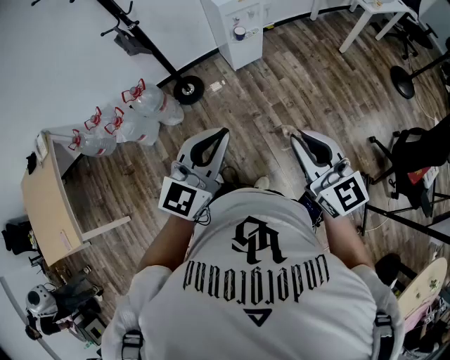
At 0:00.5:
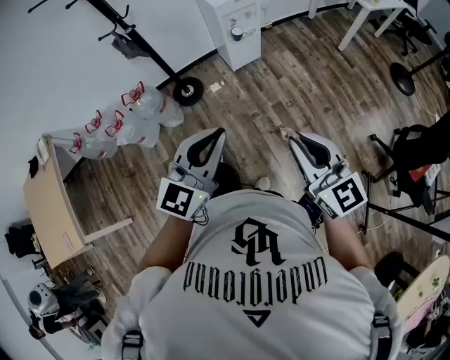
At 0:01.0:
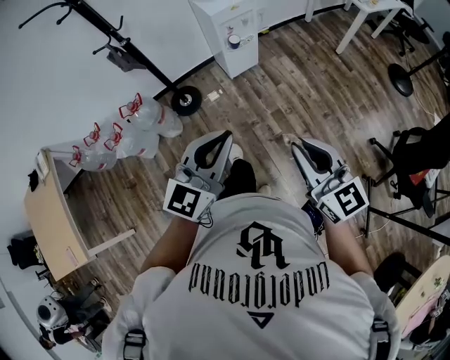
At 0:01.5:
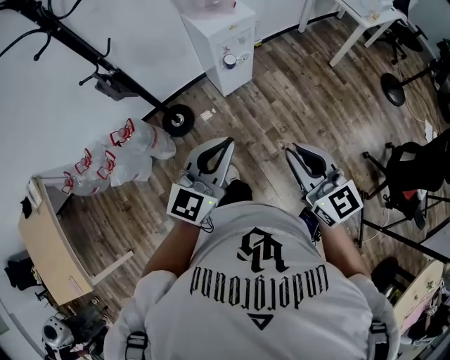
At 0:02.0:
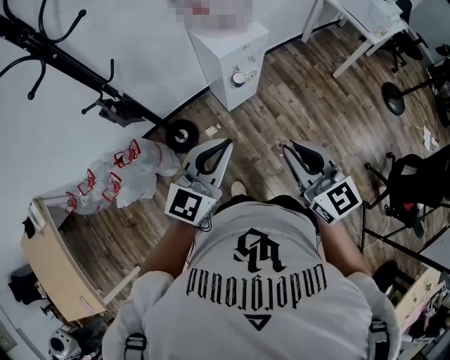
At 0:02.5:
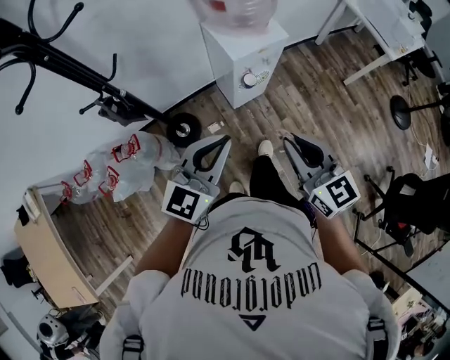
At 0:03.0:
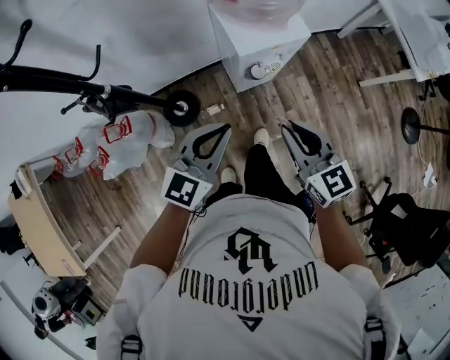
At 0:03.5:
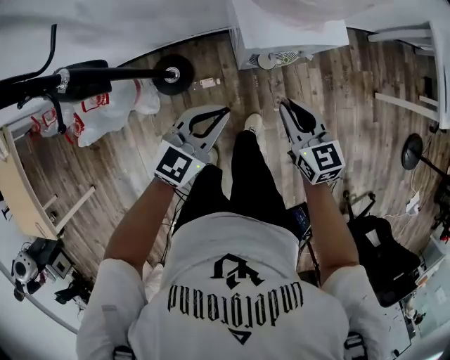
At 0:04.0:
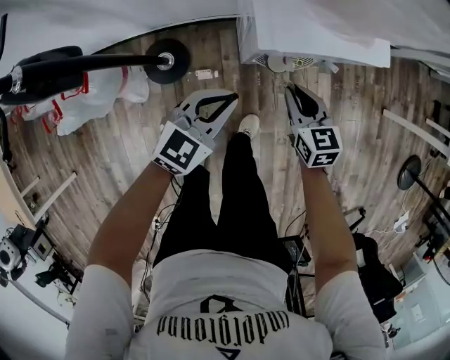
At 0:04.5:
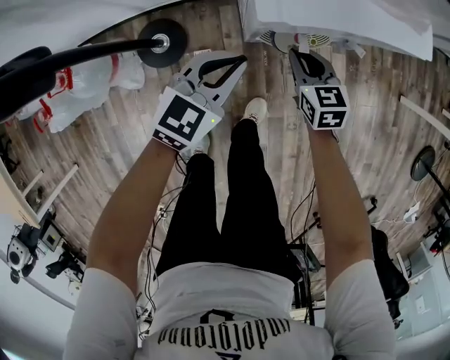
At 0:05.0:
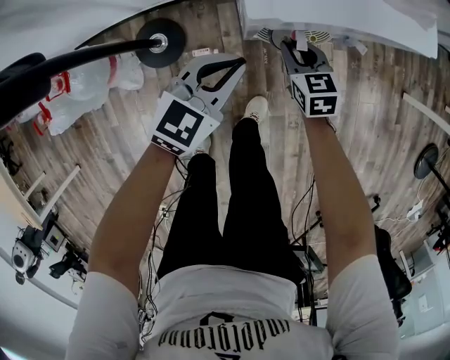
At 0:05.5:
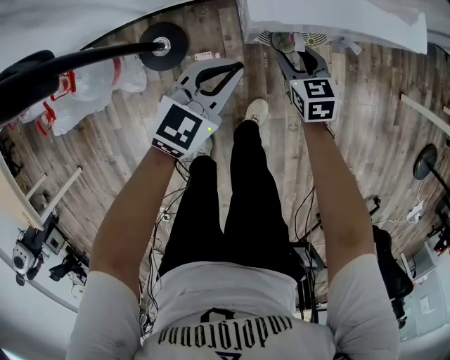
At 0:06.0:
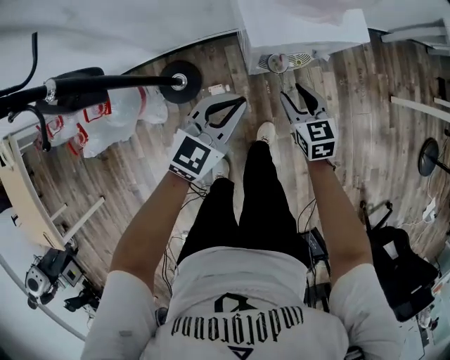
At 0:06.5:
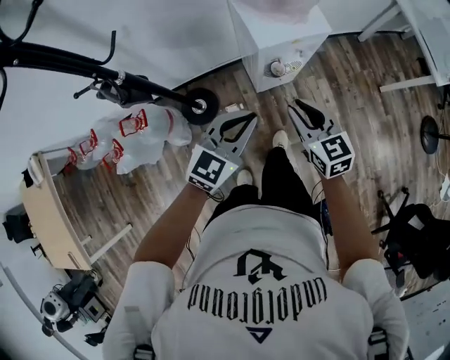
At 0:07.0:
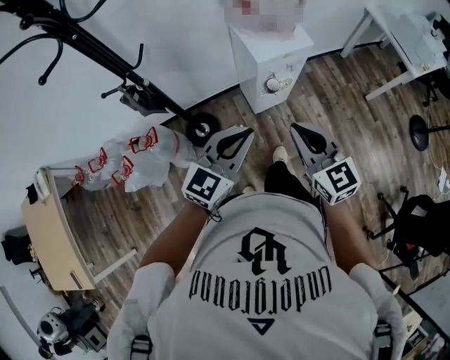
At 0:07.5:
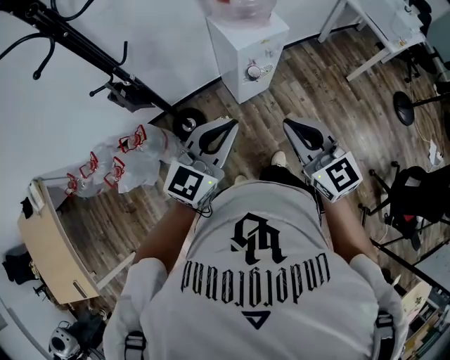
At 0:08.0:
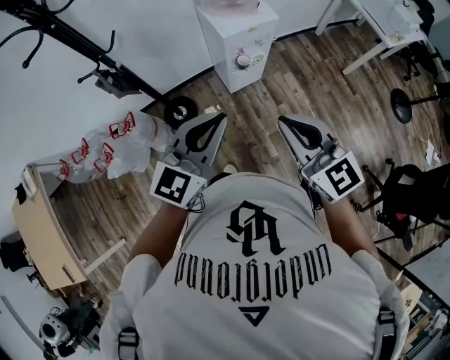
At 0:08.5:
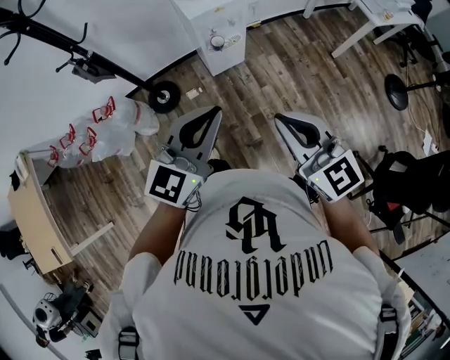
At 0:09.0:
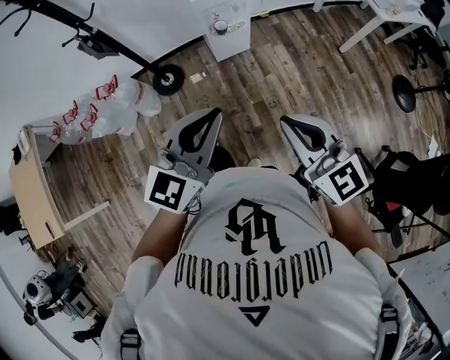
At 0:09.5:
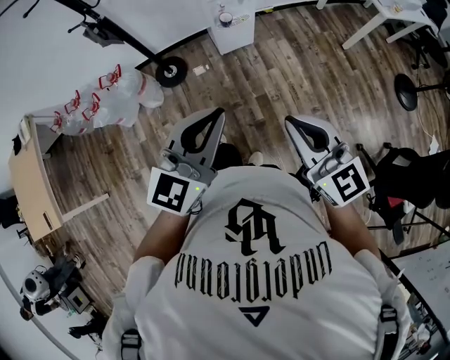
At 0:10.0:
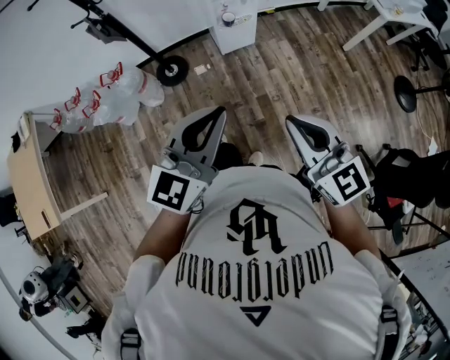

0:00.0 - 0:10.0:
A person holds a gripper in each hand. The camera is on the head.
0:00.0 - 0:02.0: Both grippers travel together forward, some 35 cm.
0:02.0 - 0:04.0: Both grippers travel together downward and forward, about 60 cm. The left gripper swivels about 20 degrees, while the right gripper changes its angle by about 30 degrees.
0:04.0 - 0:06.0: The left gripper goes approximately 5 cm upward. The right gripper goes downward and returns, about 15 cm each way, and opens.
0:06.0 - 0:08.0: The two grippers go about 50 cm upward and backward. The right gripper changes its angle by roughly 30 degrees, and closes its fingers.
0:08.0 - 0:10.0: The two grippers go approximately 25 cm backward and to the right.

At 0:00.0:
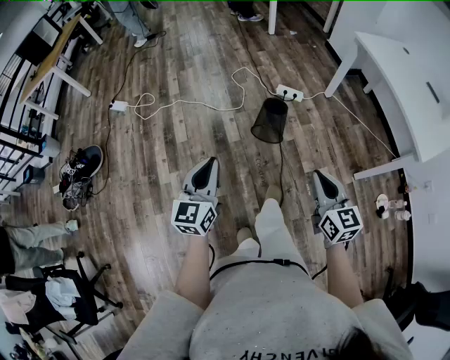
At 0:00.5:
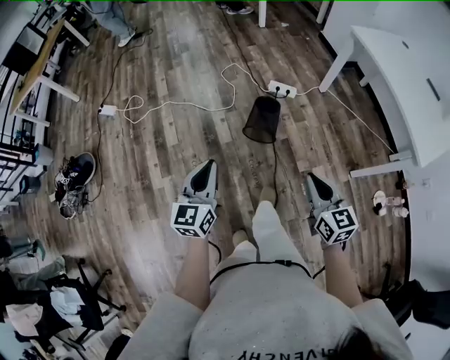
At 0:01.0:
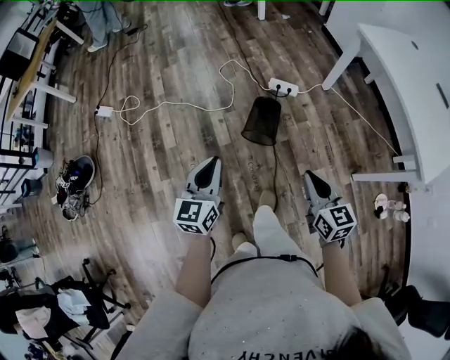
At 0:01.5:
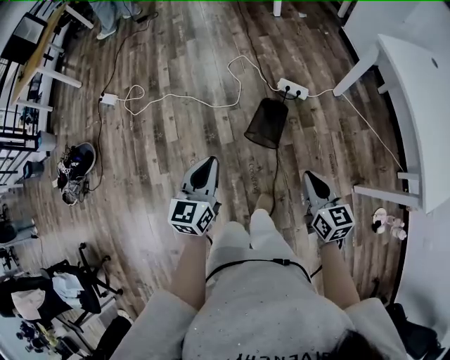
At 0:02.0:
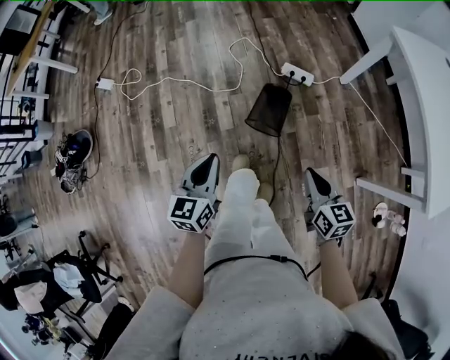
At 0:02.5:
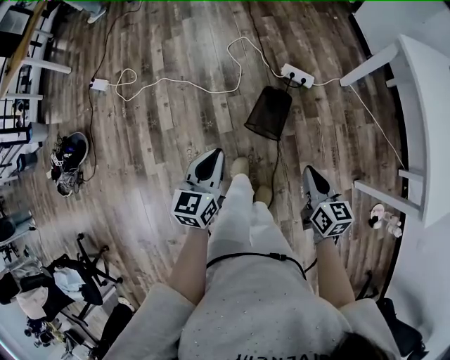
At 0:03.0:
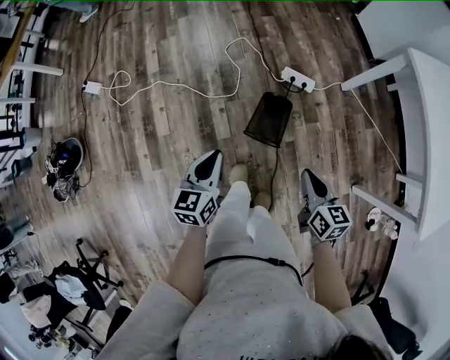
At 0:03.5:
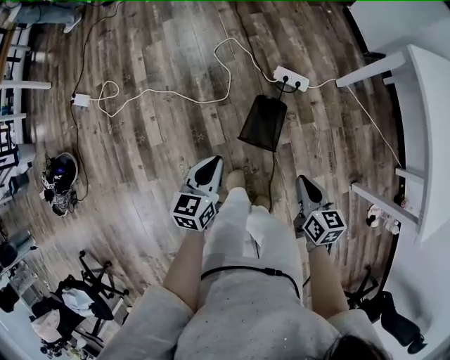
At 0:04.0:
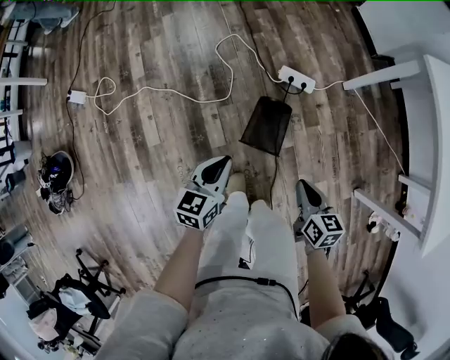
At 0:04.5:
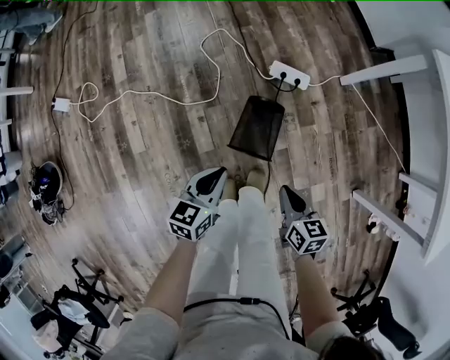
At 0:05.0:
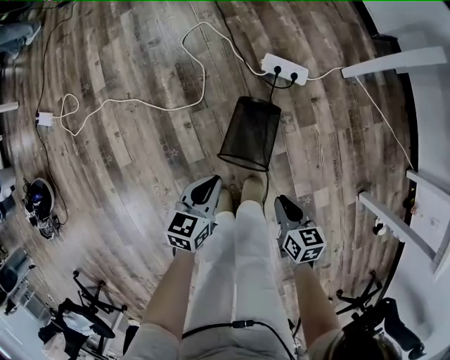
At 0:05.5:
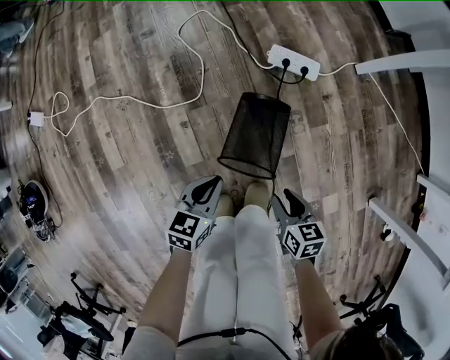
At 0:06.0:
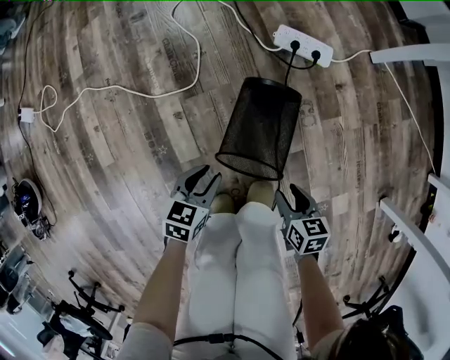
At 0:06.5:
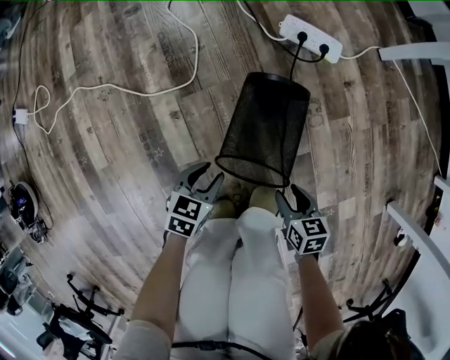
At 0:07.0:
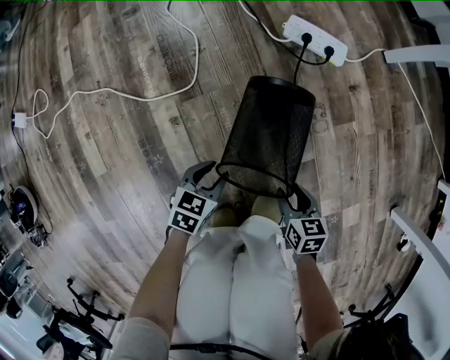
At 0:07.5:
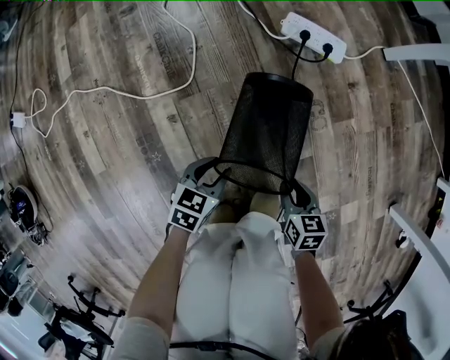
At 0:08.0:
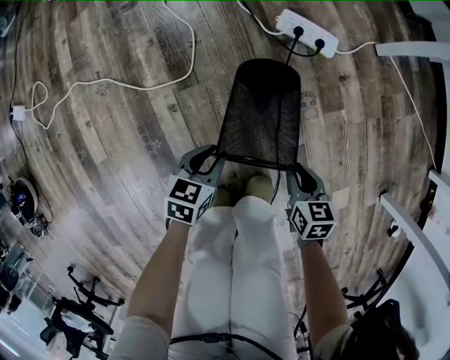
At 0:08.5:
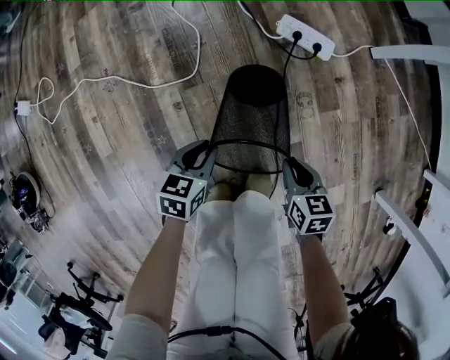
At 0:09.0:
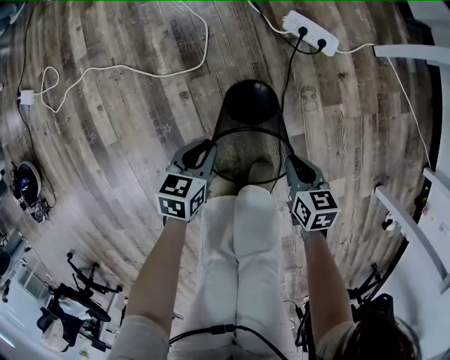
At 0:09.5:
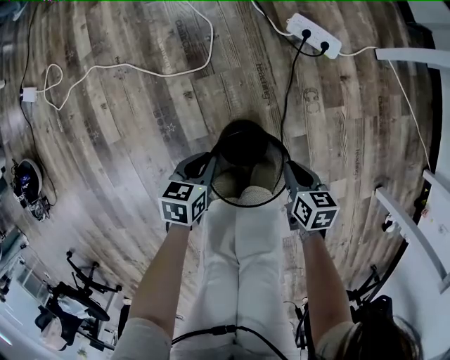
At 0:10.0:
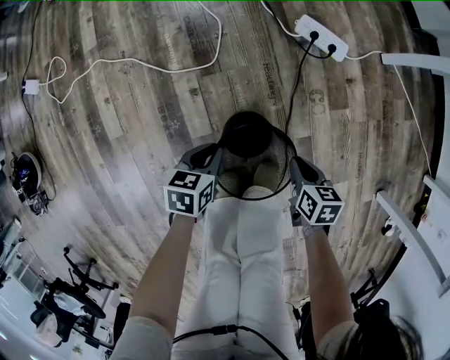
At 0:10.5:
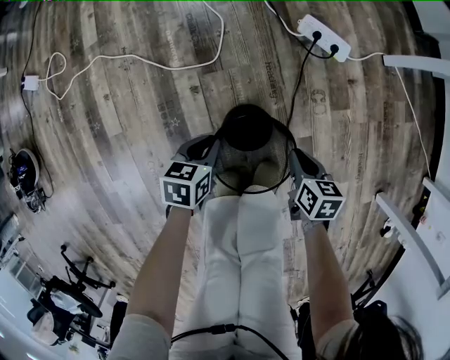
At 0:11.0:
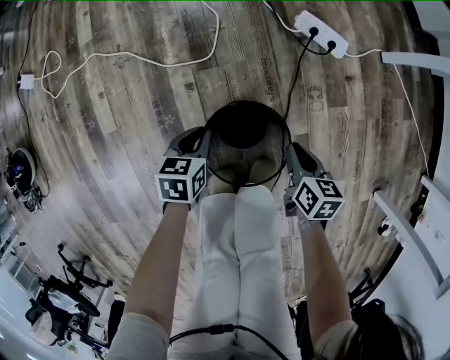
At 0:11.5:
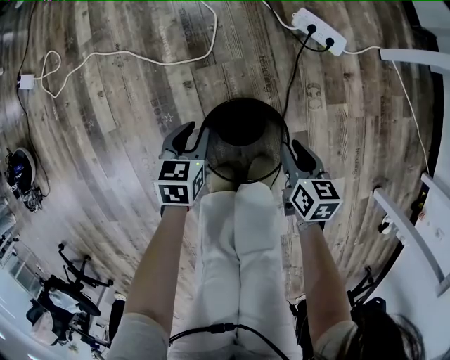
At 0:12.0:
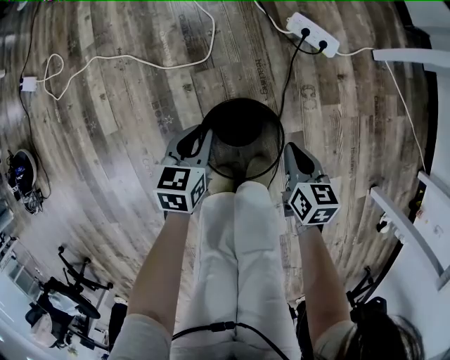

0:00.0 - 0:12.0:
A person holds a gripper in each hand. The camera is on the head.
0:00.0 - 0:02.0: The left gripper travels forward, downward and to the right by roughly 30 cm. The right gripper goes approximately 30 cm forward and downward.
0:02.0 - 0:04.0: The grippers both shift forward and downward by some 25 cm.
0:04.0 - 0:06.0: Both grippers travel together downward, approximately 40 cm. The right gripper opens. Meanwhile the left gripper changes its angle by some 20 degrees, and opens up.
0:06.0 - 0:08.0: The right gripper goes roughly 5 cm forward, travels downward and back again, roughly 10 cm each way, and closes up. Meanwhile the left gripper travels downward and back again, roughly 10 cm each way.
0:08.0 - 0:10.0: The right gripper moves upward, about 5 cm, while the left gripper moves upward and to the left, some 10 cm.
0:10.0 - 0:12.0: The right gripper travels upward by about 5 cm. The left gripper moves about 5 cm.

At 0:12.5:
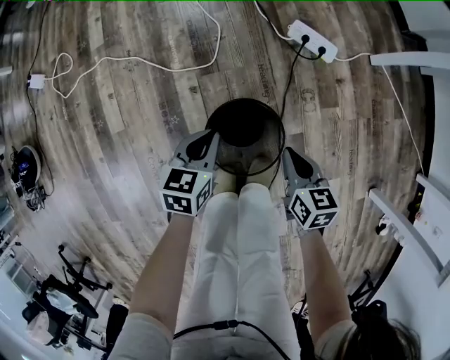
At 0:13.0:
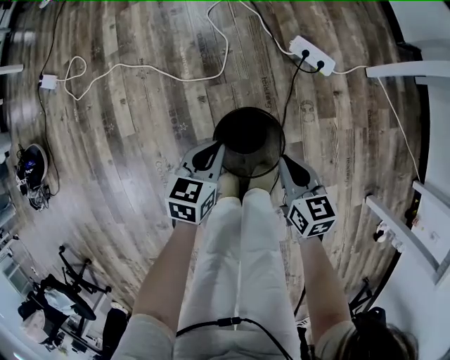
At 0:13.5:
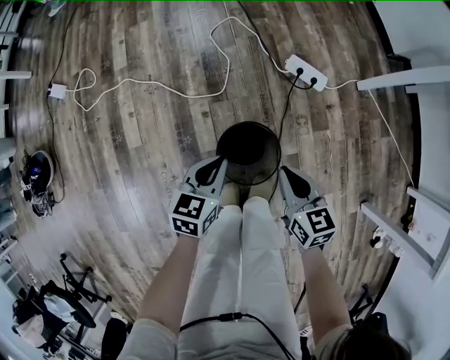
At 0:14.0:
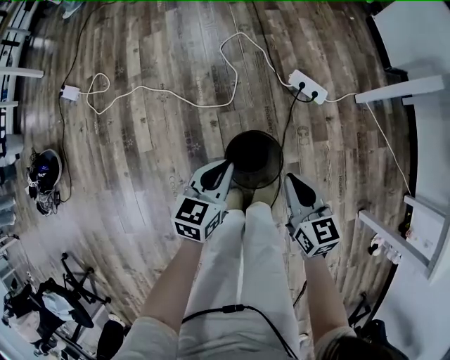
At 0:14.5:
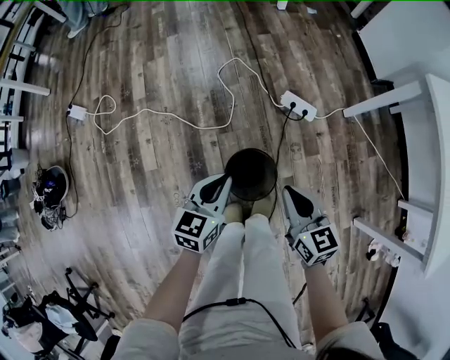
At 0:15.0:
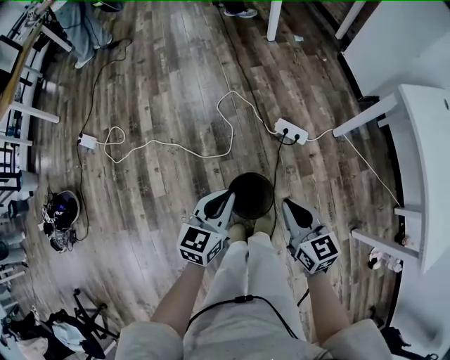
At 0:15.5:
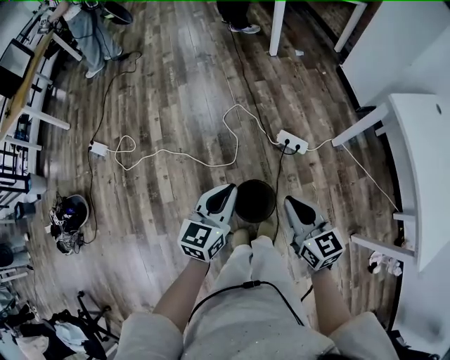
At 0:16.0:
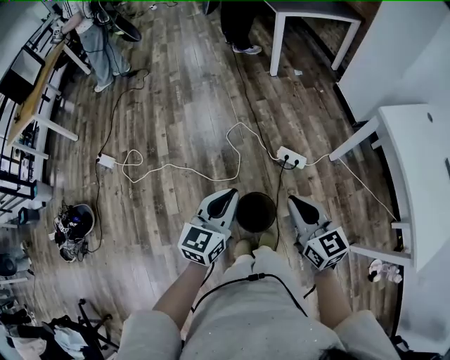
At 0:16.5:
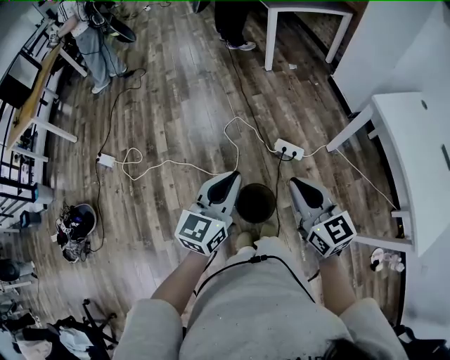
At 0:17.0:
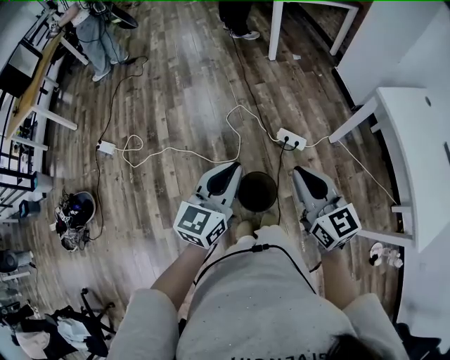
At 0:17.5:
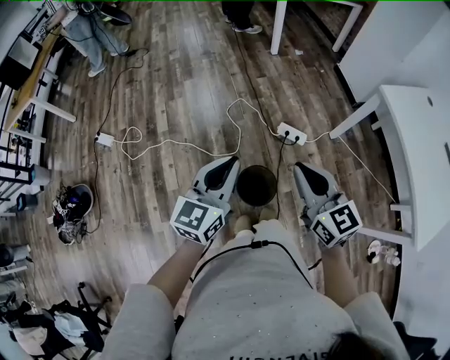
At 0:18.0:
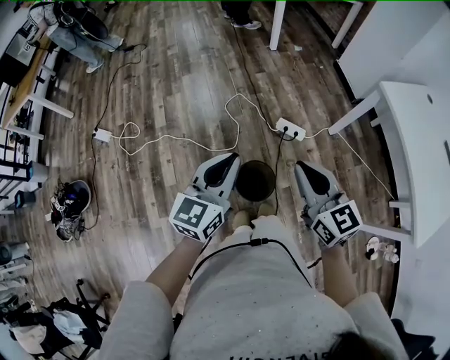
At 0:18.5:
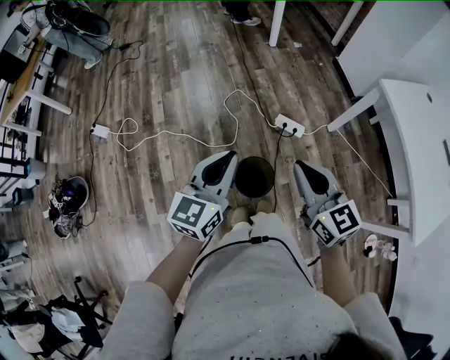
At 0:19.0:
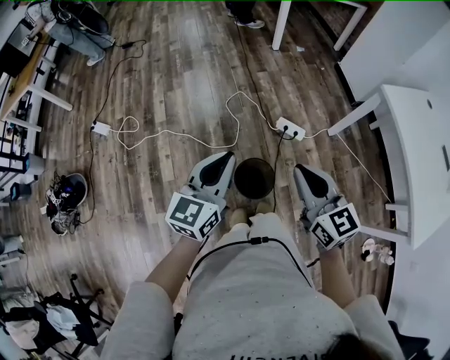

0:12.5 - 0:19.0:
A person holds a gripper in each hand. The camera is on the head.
0:12.5 - 0:14.5: Both grippers travel together upward, approximately 30 cm. The right gripper rotates some 20 degrees.
0:14.5 - 0:17.0: The two grippers go some 35 cm upward. The left gripper swivels about 20 degrees. Meanwhile the right gripper rotates about 20 degrees.
0:17.0 - 0:19.0: The grippers make only small movements.
